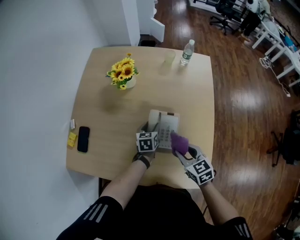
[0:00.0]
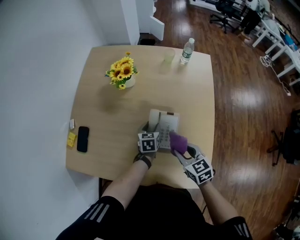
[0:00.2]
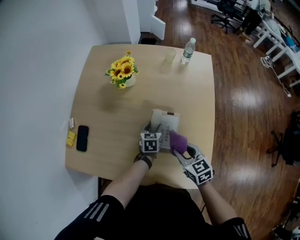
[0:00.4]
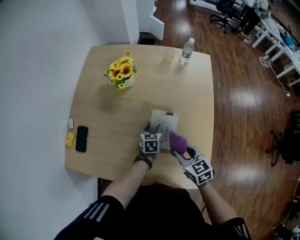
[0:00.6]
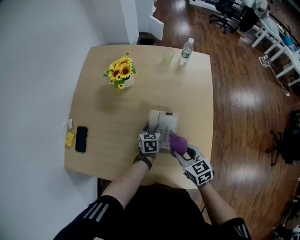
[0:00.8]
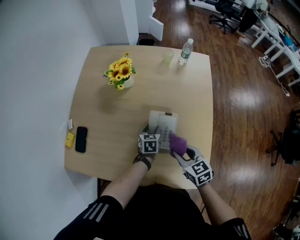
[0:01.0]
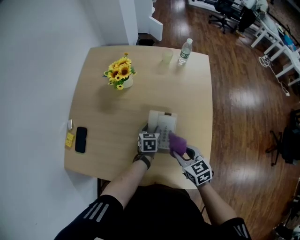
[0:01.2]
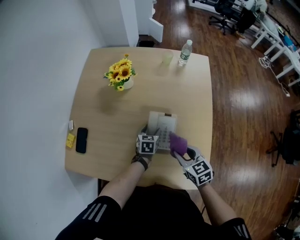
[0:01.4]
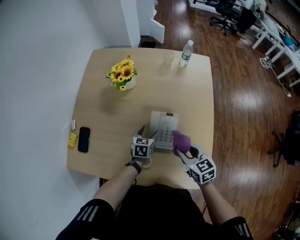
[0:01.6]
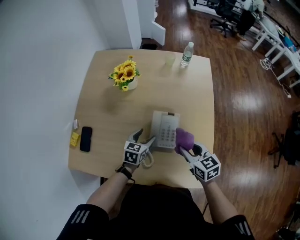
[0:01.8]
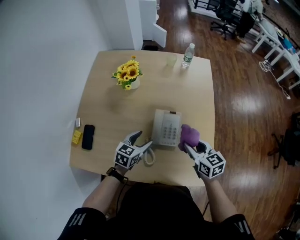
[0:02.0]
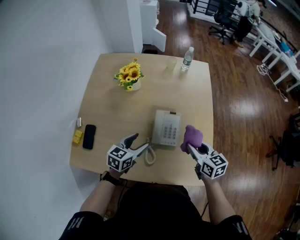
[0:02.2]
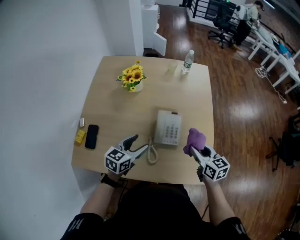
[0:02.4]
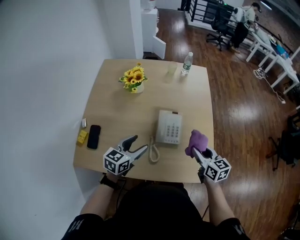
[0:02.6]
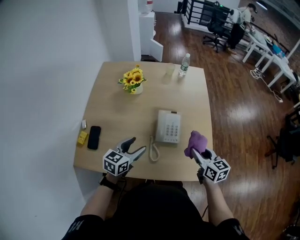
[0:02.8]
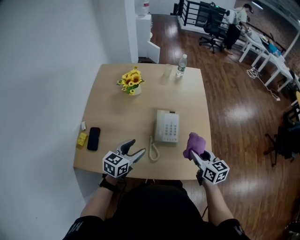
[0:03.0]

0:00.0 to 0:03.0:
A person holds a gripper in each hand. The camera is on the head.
0:00.0 to 0:01.6: There are only small adjustments of the grippers.
0:01.6 to 0:03.0: The right gripper travels backward and upward by approximately 10 cm, and swivels some 20 degrees. The left gripper moves backward, upward and to the left, about 25 cm, and rotates approximately 30 degrees.

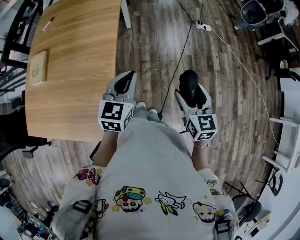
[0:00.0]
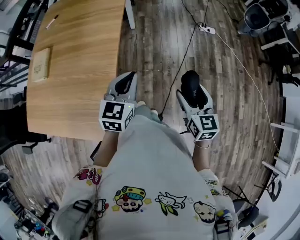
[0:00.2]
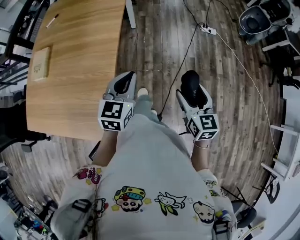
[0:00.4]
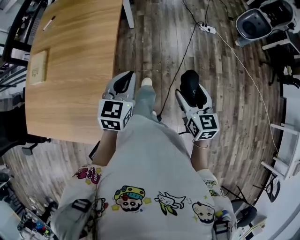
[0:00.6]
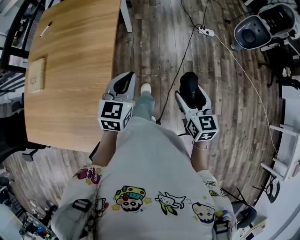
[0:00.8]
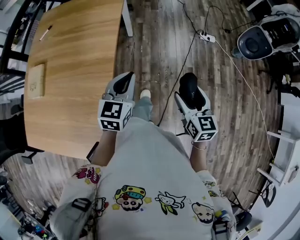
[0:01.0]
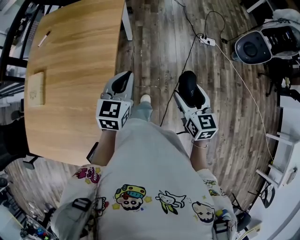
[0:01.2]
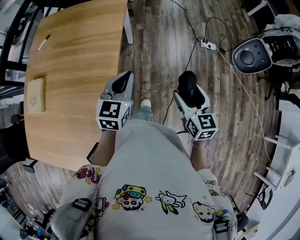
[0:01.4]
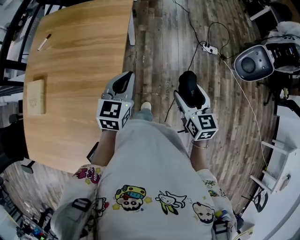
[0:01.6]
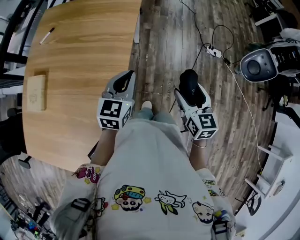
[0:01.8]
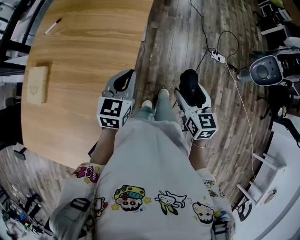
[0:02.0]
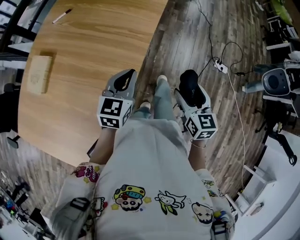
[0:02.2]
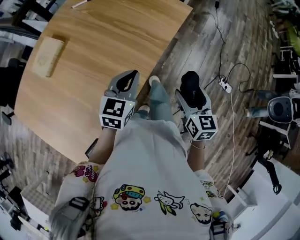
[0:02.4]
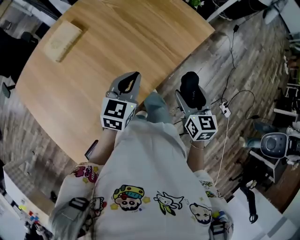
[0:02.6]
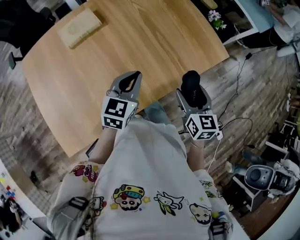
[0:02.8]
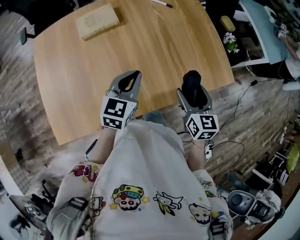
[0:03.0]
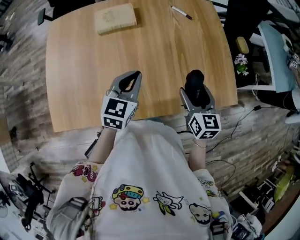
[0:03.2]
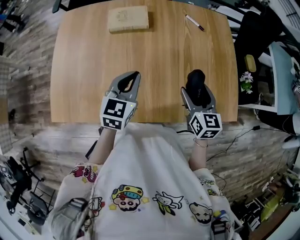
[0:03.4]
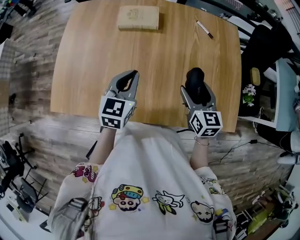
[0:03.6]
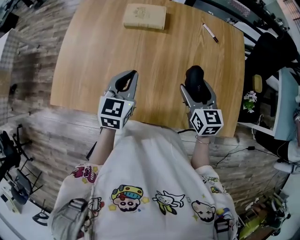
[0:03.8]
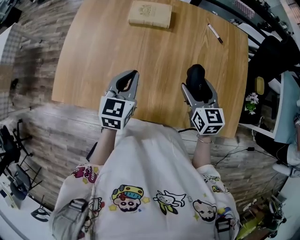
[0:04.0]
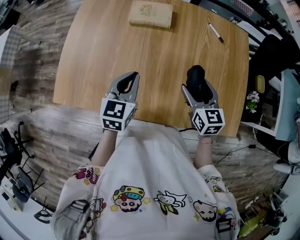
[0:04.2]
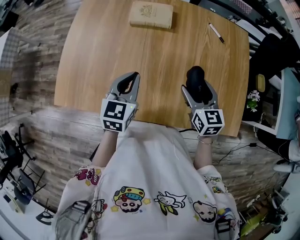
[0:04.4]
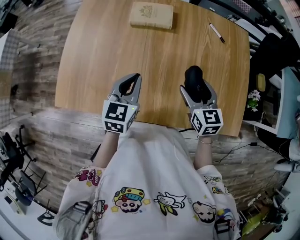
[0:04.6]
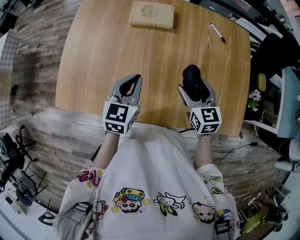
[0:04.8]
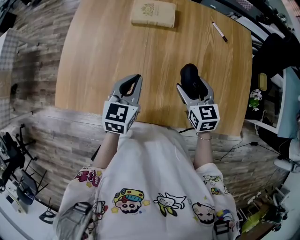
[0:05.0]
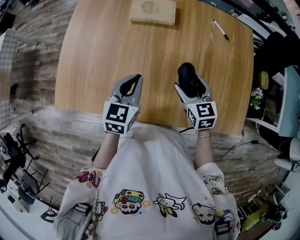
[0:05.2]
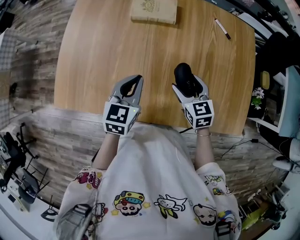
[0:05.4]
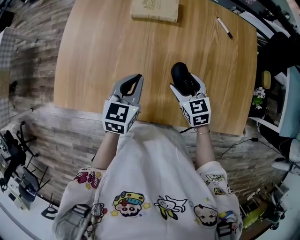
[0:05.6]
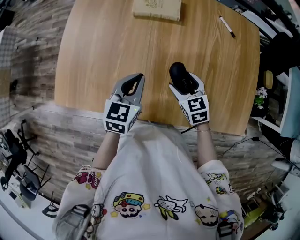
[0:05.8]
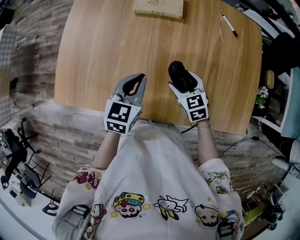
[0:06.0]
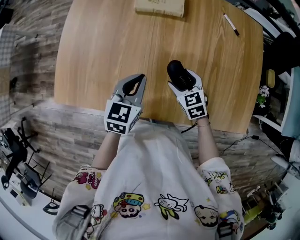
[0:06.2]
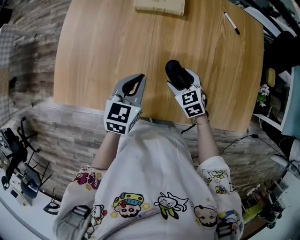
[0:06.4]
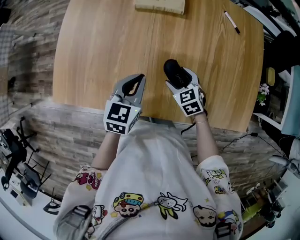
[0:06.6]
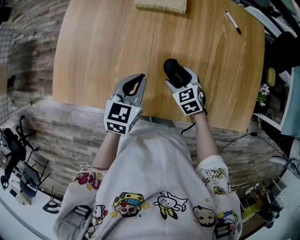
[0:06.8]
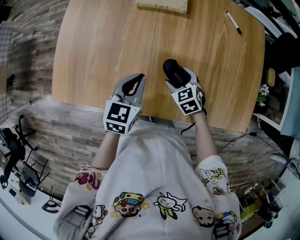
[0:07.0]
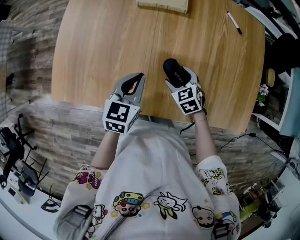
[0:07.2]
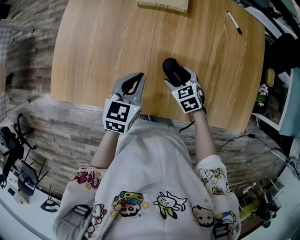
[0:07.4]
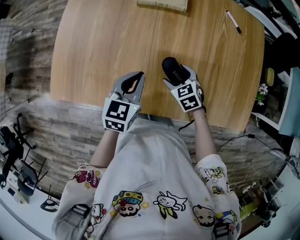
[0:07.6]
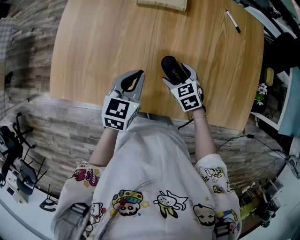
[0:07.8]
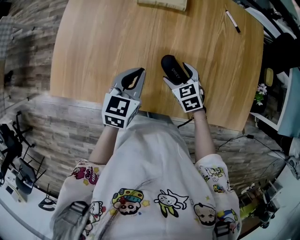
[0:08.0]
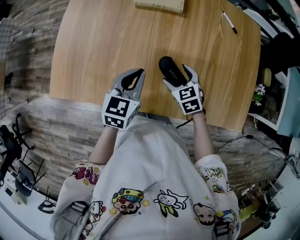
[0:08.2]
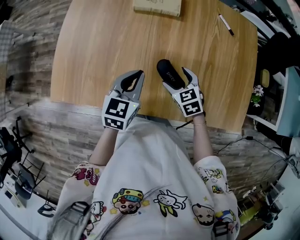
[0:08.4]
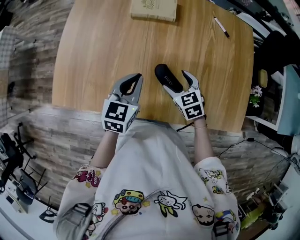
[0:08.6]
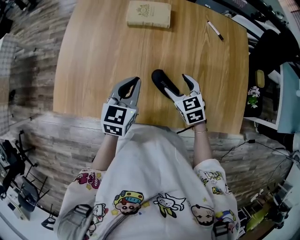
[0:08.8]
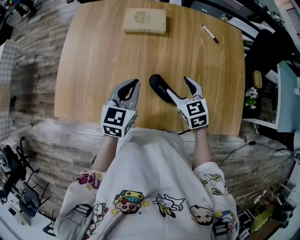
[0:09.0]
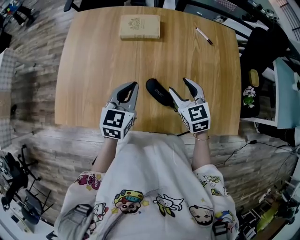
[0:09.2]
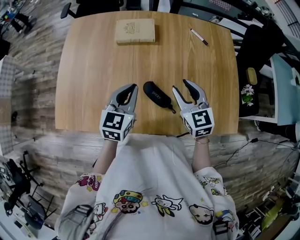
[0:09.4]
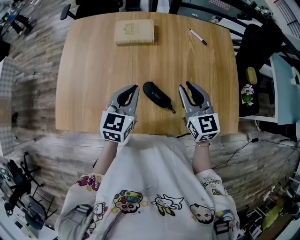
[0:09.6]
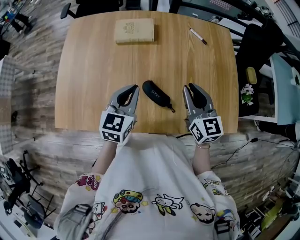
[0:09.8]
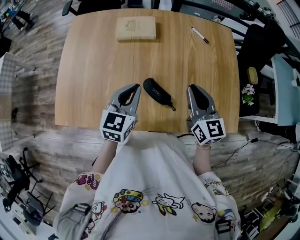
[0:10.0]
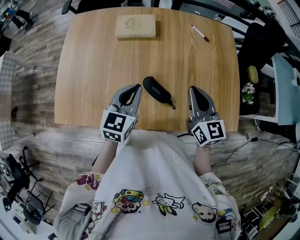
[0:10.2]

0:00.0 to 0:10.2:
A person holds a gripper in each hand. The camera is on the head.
0:00.0 to 0:01.4: Both grippers move forward, about 25 cm.
0:01.4 to 0:03.0: The left gripper ends up approximately 25 cm from where it was, and changes its angle by roughly 60 degrees, while the right gripper moves roughly 40 cm, and turns by some 60 degrees.
0:03.0 to 0:04.4: The left gripper moves approximately 10 cm, and changes its angle by roughly 30 degrees. Meanwhile the right gripper moves approximately 15 cm, and changes its angle by about 30 degrees.
0:04.4 to 0:05.8: The right gripper heads downward and to the left, covering roughly 15 cm, and turns by some 20 degrees.
0:05.8 to 0:07.2: The right gripper moves downward, about 5 cm.
0:07.2 to 0:08.8: The right gripper shifts about 10 cm upward. The left gripper moves upward, some 5 cm.
0:08.8 to 0:10.2: The right gripper moves upward and to the right, approximately 20 cm, tips its fingers upward by approximately 30 degrees, and closes up. Meanwhile the left gripper ends up approximately 5 cm from where it was.

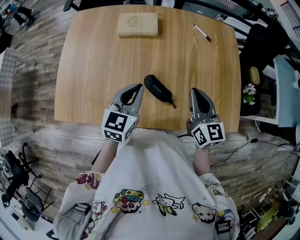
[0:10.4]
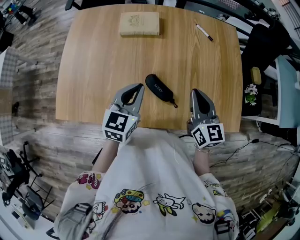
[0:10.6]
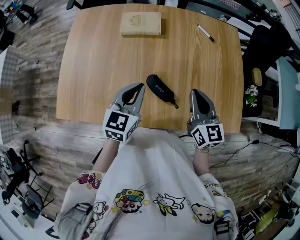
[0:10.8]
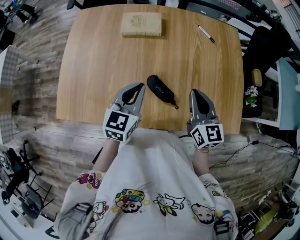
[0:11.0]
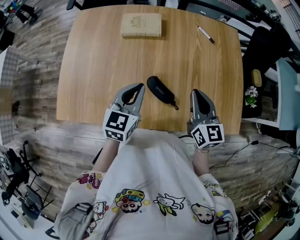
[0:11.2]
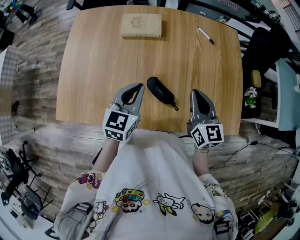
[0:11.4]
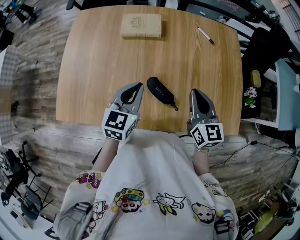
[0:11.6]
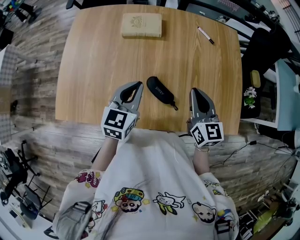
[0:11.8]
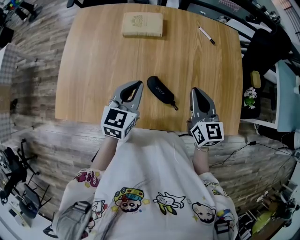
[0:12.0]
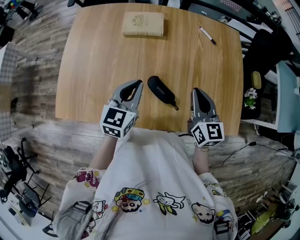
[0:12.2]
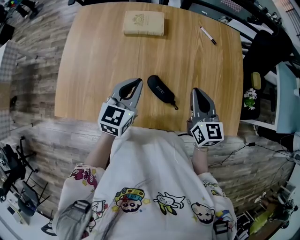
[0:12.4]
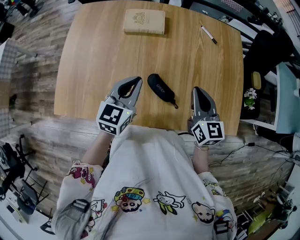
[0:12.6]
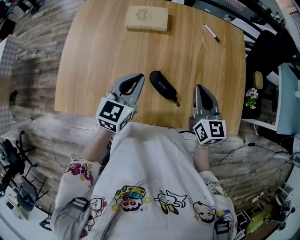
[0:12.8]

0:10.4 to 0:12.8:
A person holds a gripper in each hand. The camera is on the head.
0:10.4 to 0:11.6: There are only small adjustments of the grippers.
0:11.6 to 0:12.8: Both grippers stay put.

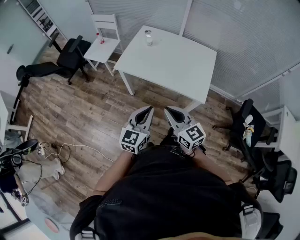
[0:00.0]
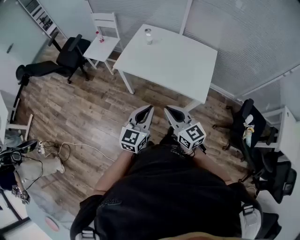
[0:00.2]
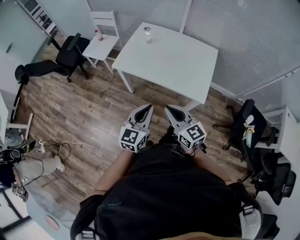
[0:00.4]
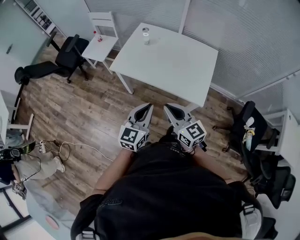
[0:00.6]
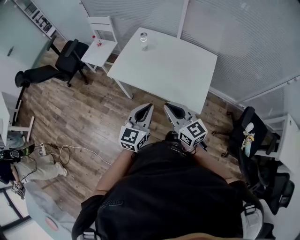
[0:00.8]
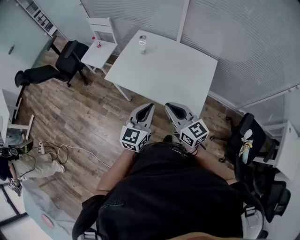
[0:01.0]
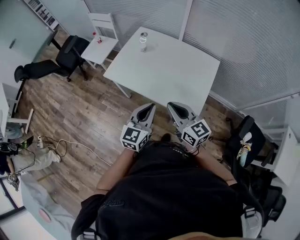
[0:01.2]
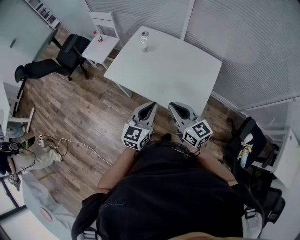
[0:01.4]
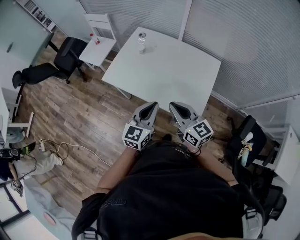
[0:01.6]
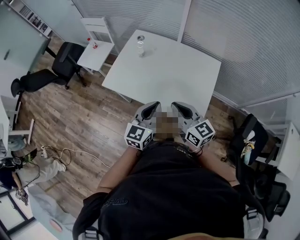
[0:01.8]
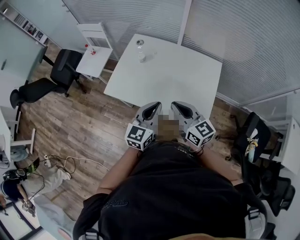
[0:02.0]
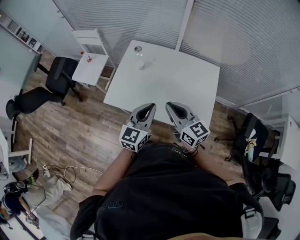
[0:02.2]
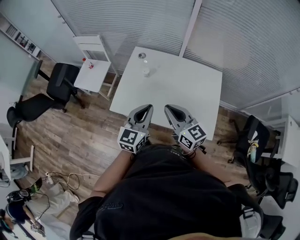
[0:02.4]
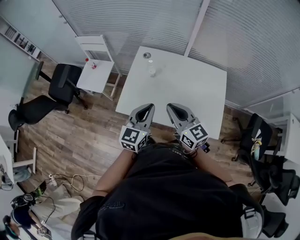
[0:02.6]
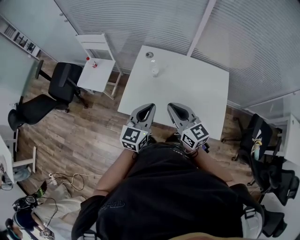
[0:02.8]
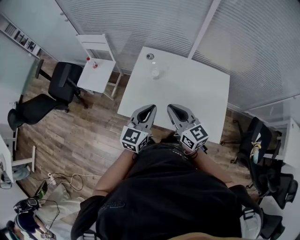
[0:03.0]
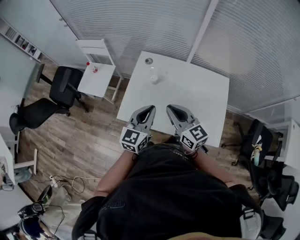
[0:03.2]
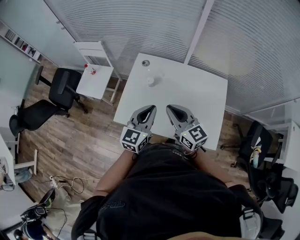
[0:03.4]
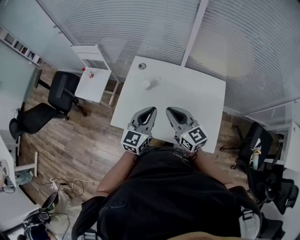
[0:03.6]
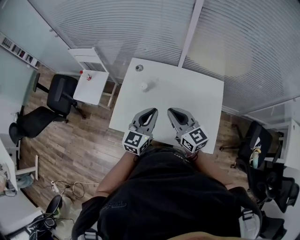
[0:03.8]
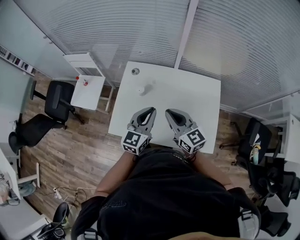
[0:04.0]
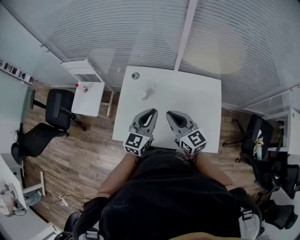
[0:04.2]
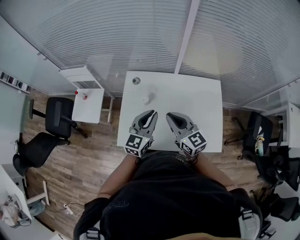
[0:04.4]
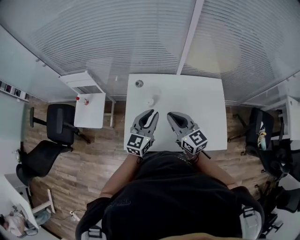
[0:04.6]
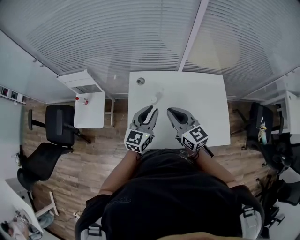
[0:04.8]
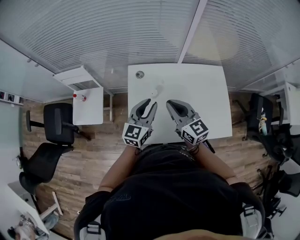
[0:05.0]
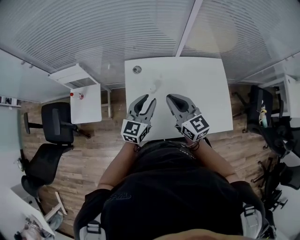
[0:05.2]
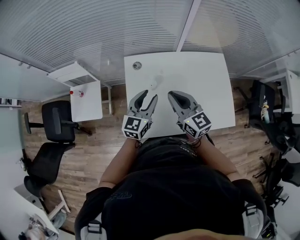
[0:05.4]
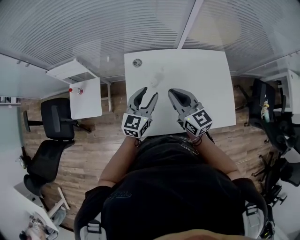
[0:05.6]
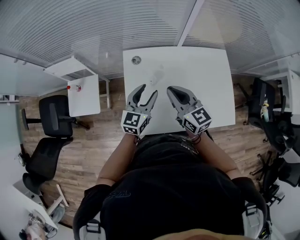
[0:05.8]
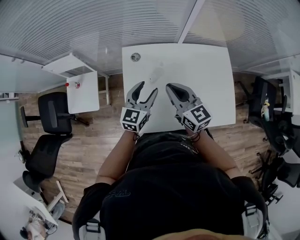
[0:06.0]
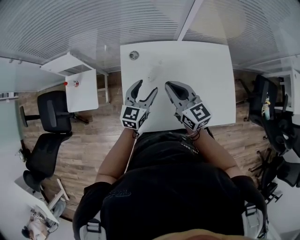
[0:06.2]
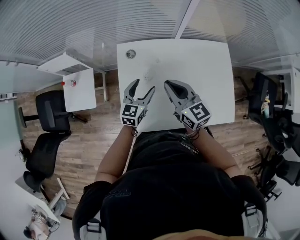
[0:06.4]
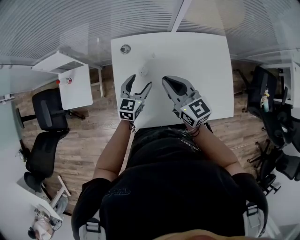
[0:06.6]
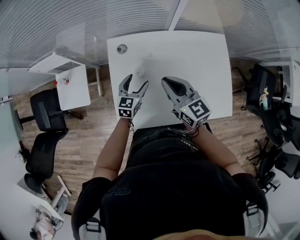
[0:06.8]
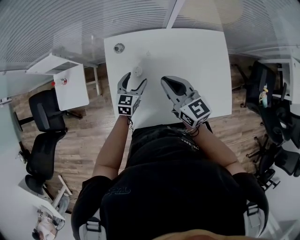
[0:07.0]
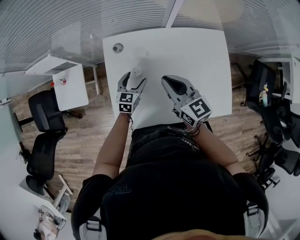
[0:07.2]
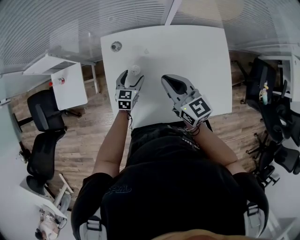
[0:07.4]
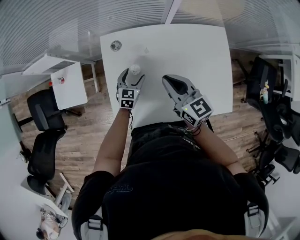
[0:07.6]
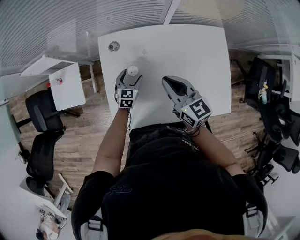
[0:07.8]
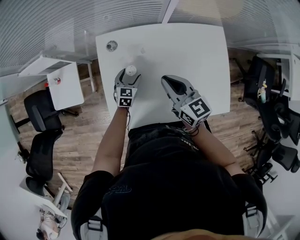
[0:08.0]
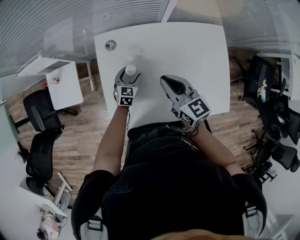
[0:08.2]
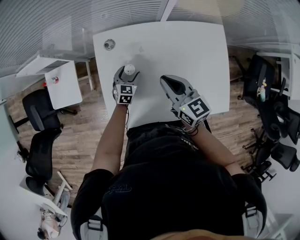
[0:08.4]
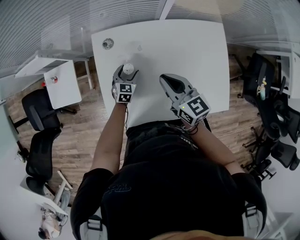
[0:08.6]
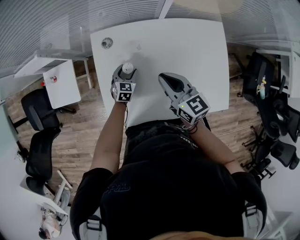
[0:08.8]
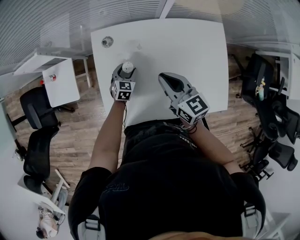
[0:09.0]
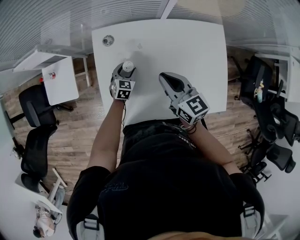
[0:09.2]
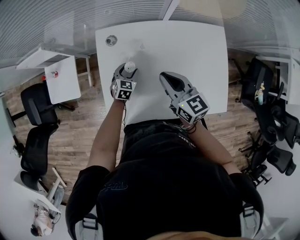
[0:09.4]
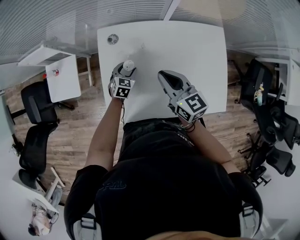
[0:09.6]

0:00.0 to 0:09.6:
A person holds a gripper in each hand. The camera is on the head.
0:00.0 to 0:01.6: The grippers both shift forward and to the right by roughly 25 cm.
0:01.6 to 0:03.2: Both grippers move forward and to the left, roughly 25 cm.
0:03.2 to 0:04.8: The two grippers go approximately 15 cm forward.
0:04.8 to 0:06.4: The right gripper moves forward and downward, some 10 cm. The left gripper travels downward and forward by approximately 15 cm, and opens up.
0:06.4 to 0:08.0: The right gripper shifts about 10 cm downward and to the right, while the left gripper heads downward, covering approximately 20 cm.
0:08.0 to 0:09.6: The grippers move only a little.
